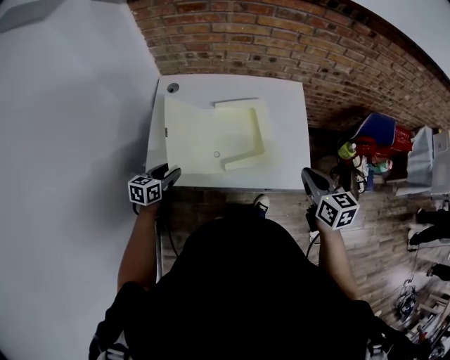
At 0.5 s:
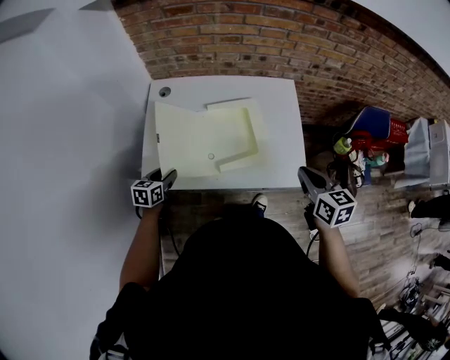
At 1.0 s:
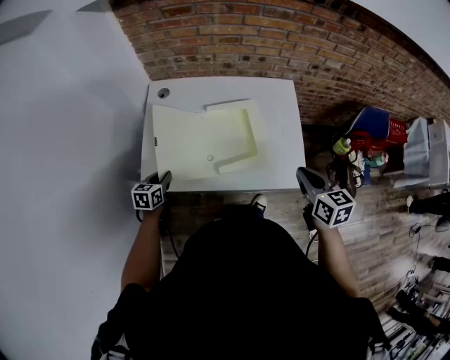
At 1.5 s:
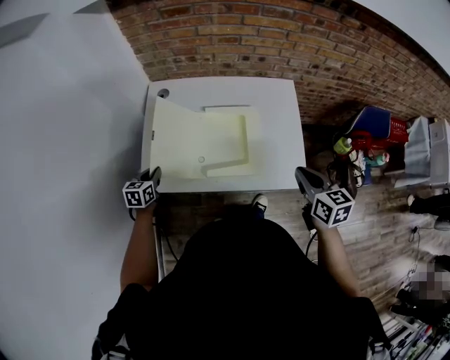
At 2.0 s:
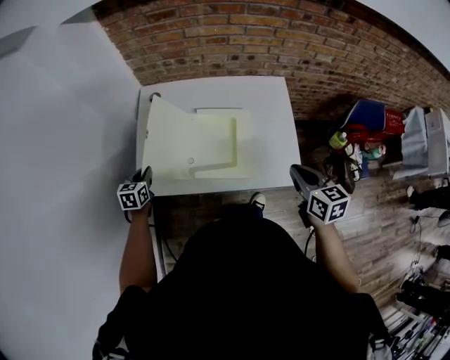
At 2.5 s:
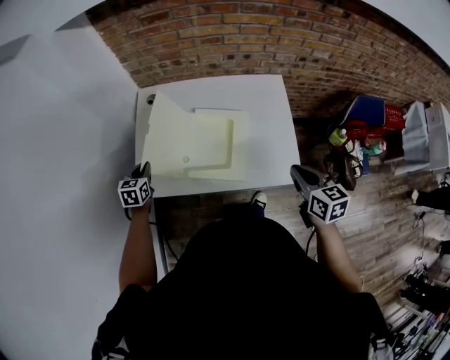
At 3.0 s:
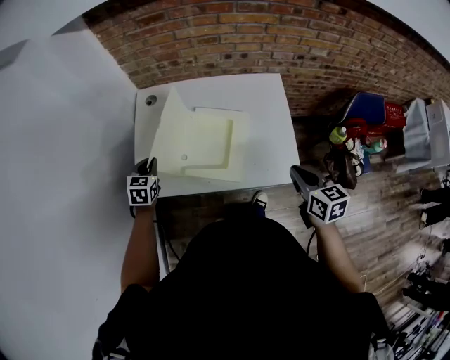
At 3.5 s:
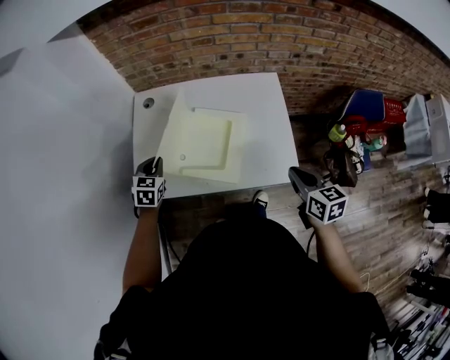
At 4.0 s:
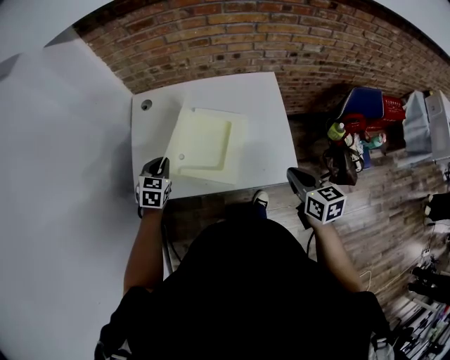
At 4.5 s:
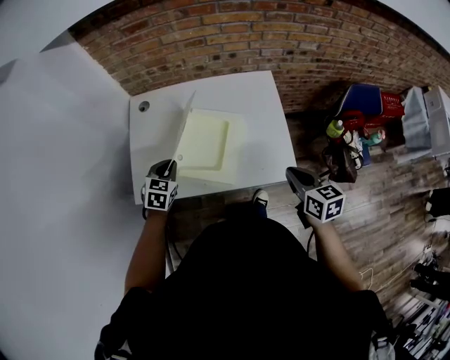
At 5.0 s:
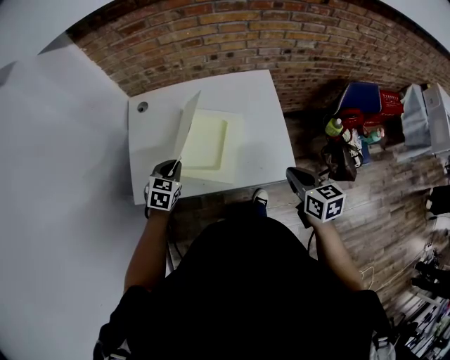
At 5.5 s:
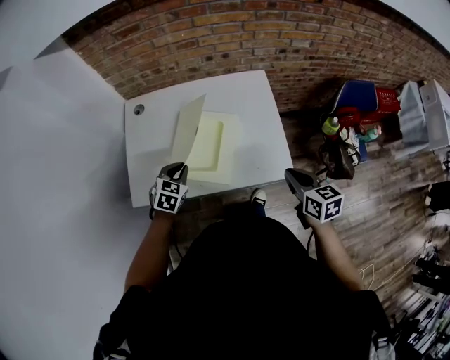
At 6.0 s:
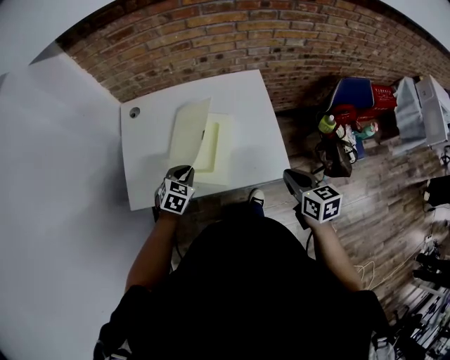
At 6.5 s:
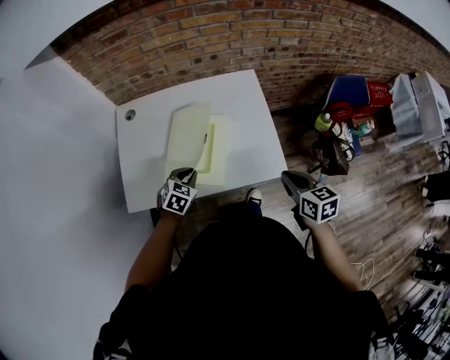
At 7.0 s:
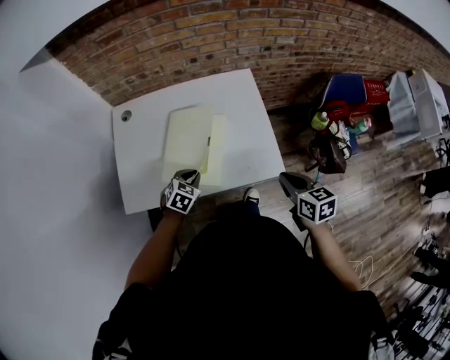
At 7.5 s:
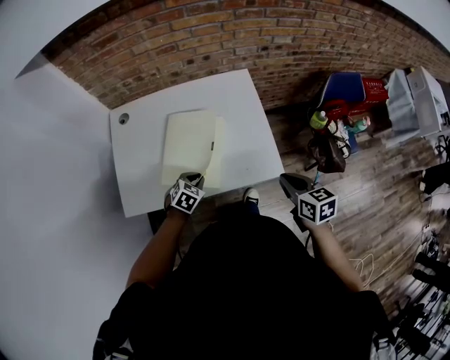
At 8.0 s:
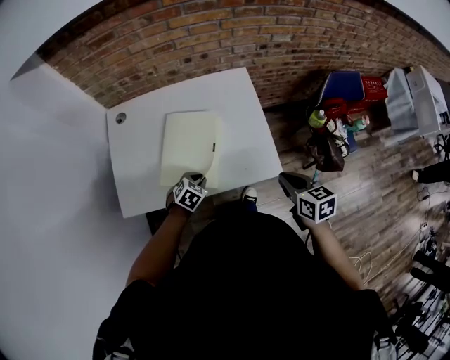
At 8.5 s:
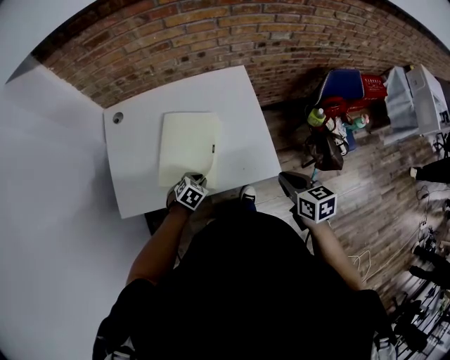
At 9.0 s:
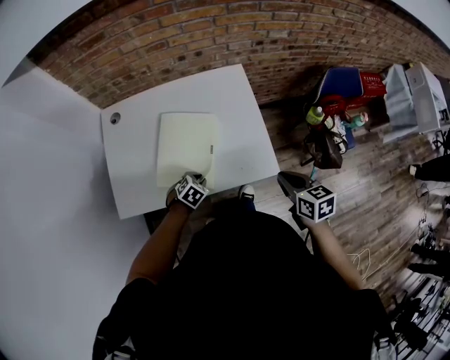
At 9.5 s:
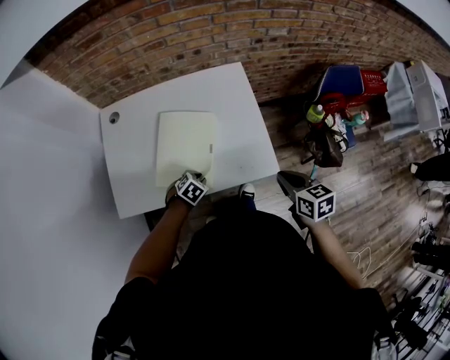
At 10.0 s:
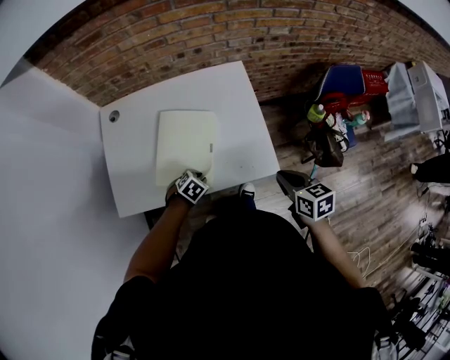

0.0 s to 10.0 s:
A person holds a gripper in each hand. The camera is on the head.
0.0 to 2.0 s: The left gripper moves to the left, roughly 5 cm, and closes.
2.0 to 4.0 s: The left gripper goes about 15 cm to the right and upward, and swivels roughly 30 degrees.
4.0 to 6.0 s: The left gripper is displaced to the right by approximately 15 cm.
6.0 to 8.0 s: The left gripper heads downward and to the right, covering about 10 cm.
8.0 to 10.0 s: The grippers stay close to where they were, moving slightly.

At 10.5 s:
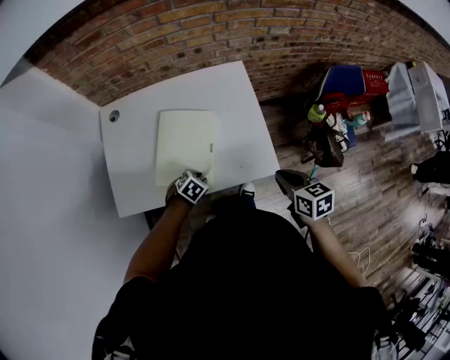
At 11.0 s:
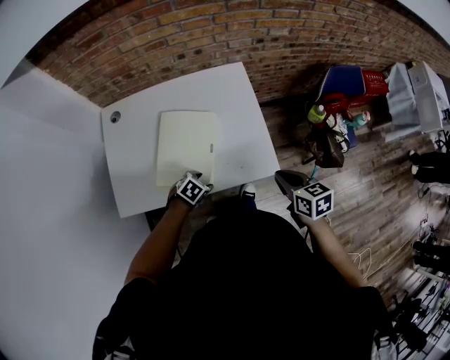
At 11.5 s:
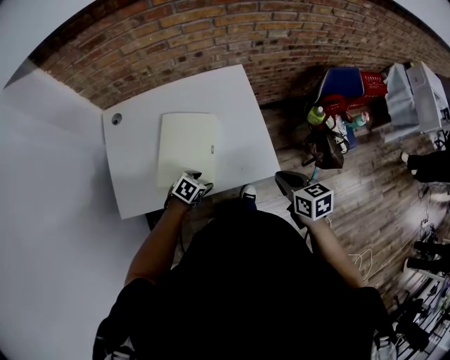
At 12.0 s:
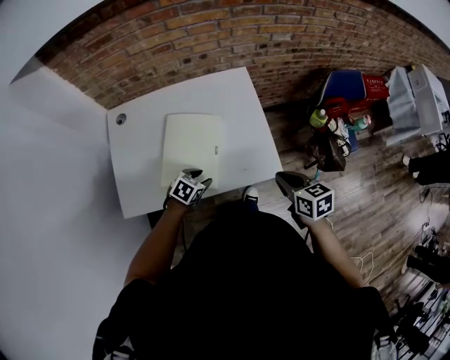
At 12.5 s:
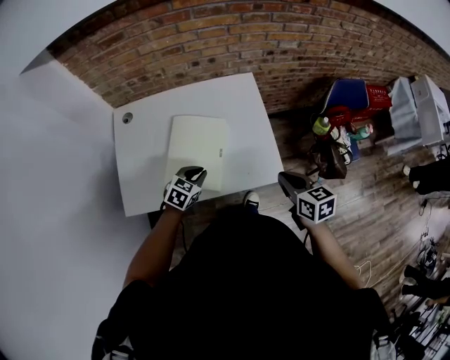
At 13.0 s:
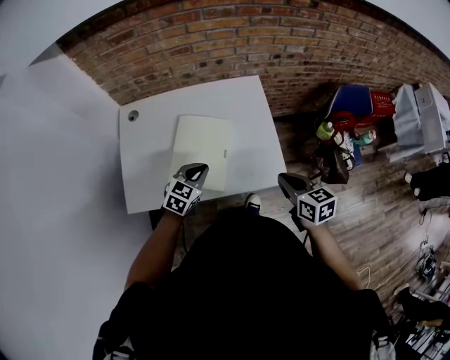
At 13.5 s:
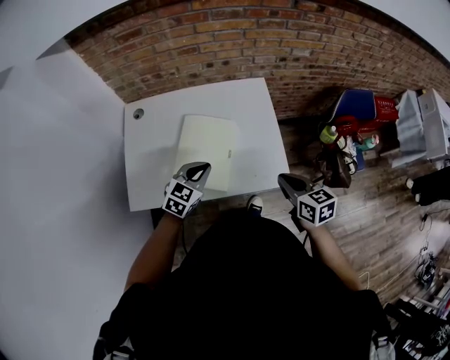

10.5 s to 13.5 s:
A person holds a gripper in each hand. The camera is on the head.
10.5 to 12.0 s: The left gripper opens its fingers.
12.0 to 13.5 s: The left gripper goes about 15 cm upward, turns by roughly 30 degrees, and closes up.

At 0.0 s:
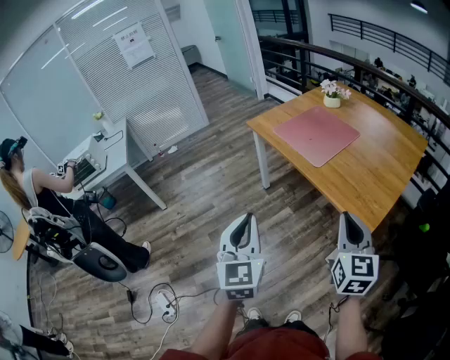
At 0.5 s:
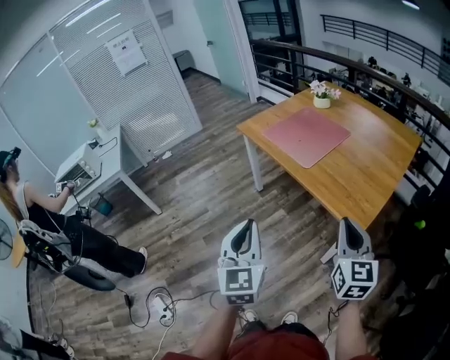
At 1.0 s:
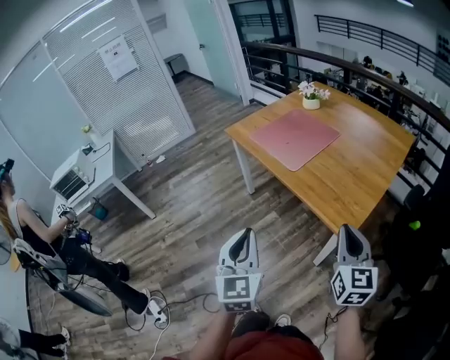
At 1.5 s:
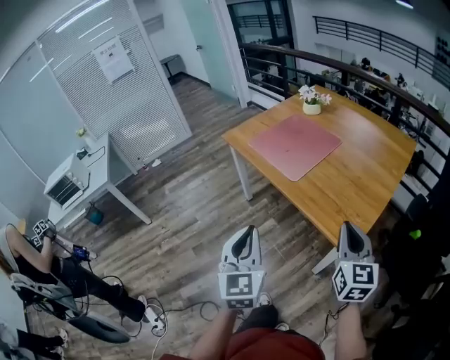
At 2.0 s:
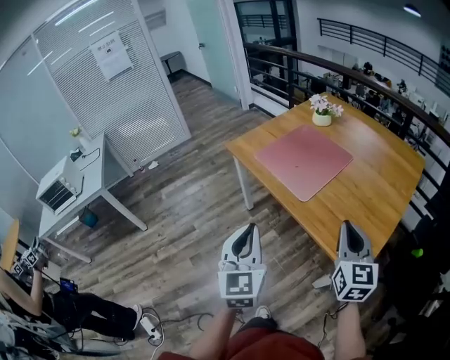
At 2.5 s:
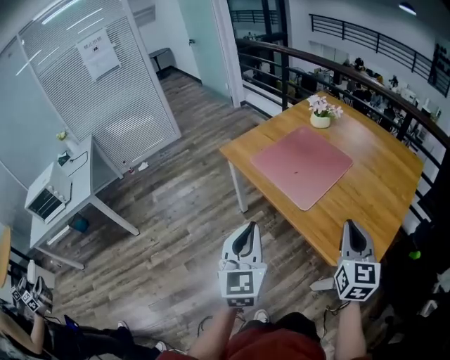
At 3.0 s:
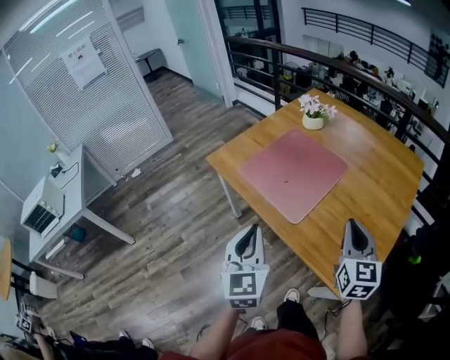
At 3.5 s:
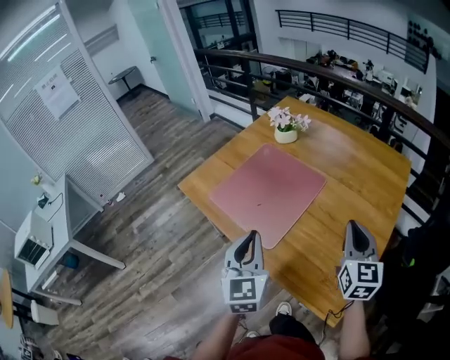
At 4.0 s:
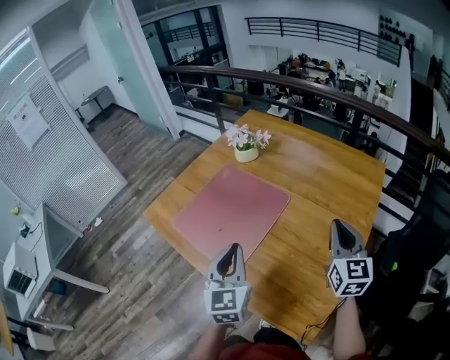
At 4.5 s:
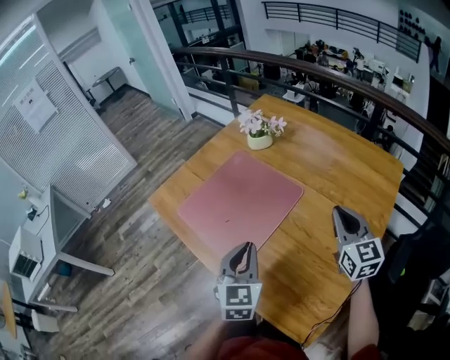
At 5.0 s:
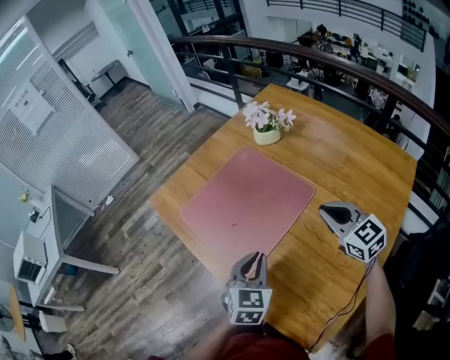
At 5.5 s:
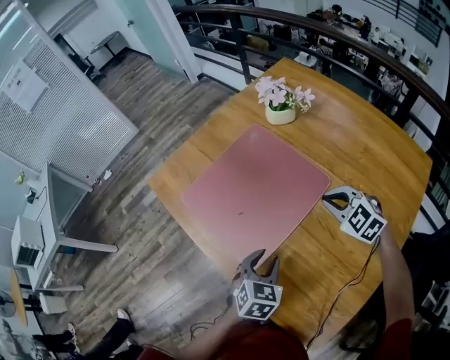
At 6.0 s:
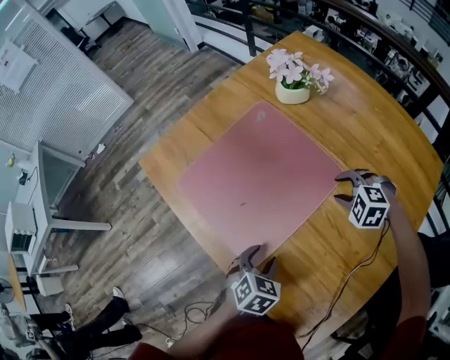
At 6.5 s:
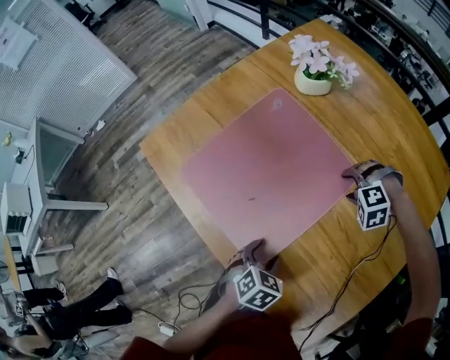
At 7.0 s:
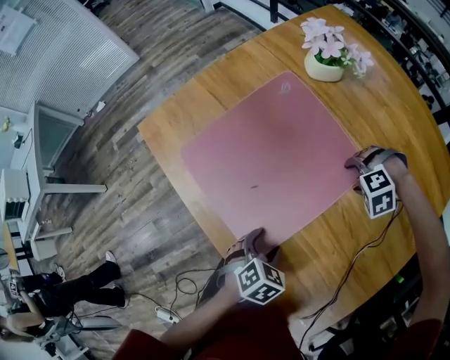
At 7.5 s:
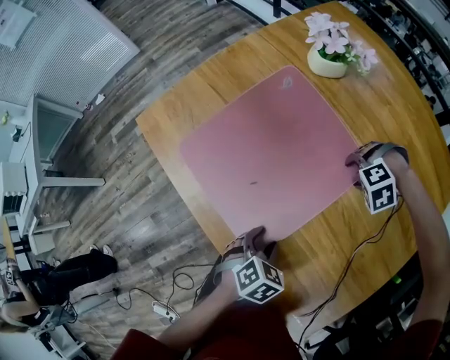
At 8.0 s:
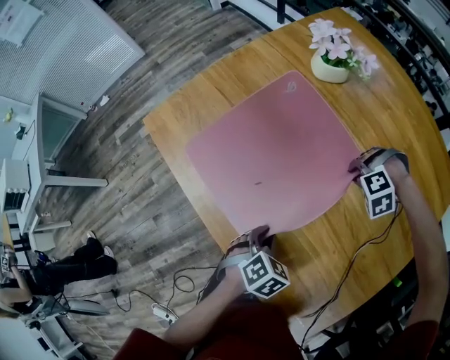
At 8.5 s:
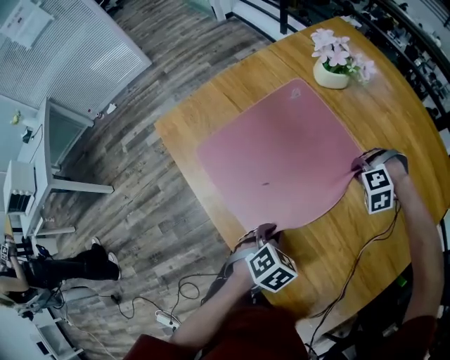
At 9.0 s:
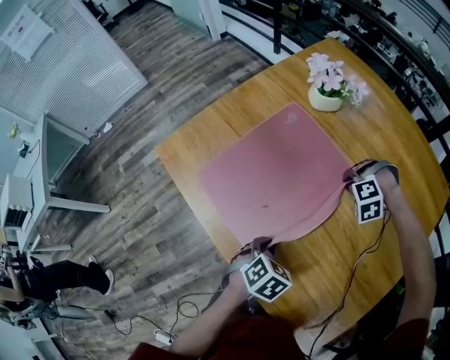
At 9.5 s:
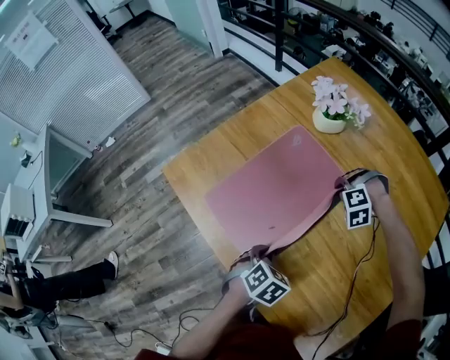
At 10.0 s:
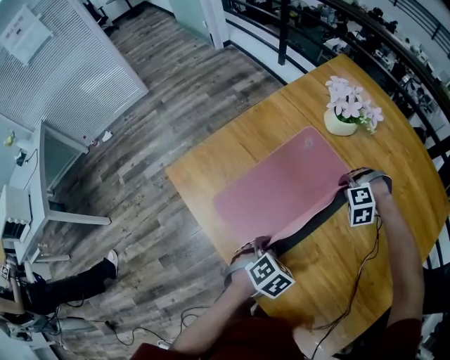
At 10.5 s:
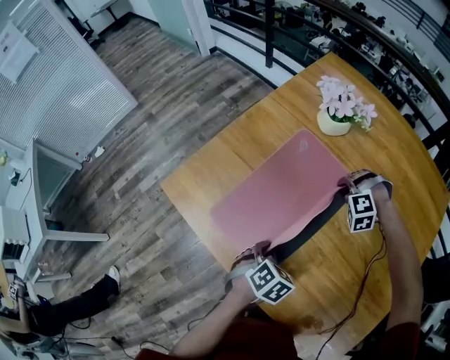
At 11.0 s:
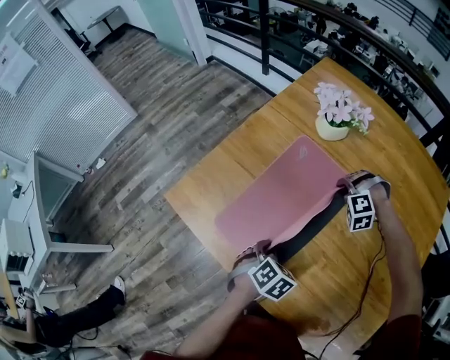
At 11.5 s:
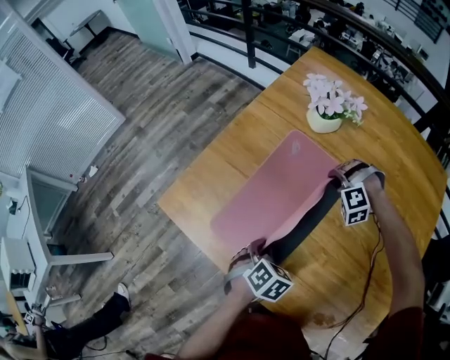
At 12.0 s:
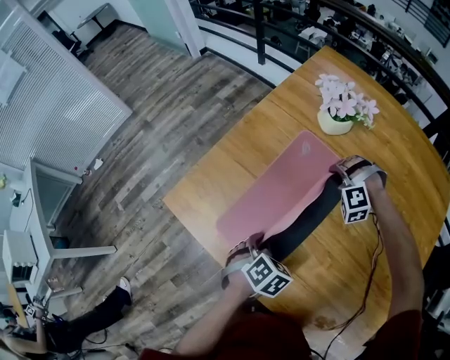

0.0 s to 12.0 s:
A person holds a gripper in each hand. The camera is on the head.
0.0 to 2.0 s: Both grippers travel together forward, about 20 cm.
2.0 to 4.0 s: Both grippers move forward and to the right, some 40 cm.
4.0 to 6.0 s: The right gripper moves downward and forward, some 40 cm, tilts its fingers some 60 degrees downward, and opens. Meanwhile the left gripper travels downward by roughly 25 cm, points its fingers some 50 degrees further downward, and opens its fingers.
6.0 to 8.0 s: The left gripper changes place by roughly 5 cm, and closes its fingers. The right gripper is displaced downward by about 5 cm, changes its angle by some 40 degrees, and opens and closes again.
8.0 to 10.0 s: The left gripper ends up about 15 cm from where it was. The right gripper ends up roughly 15 cm from where it was.
10.0 to 12.0 s: The left gripper ends up some 10 cm from where it was. Meanwhile the right gripper changes place by approximately 10 cm.

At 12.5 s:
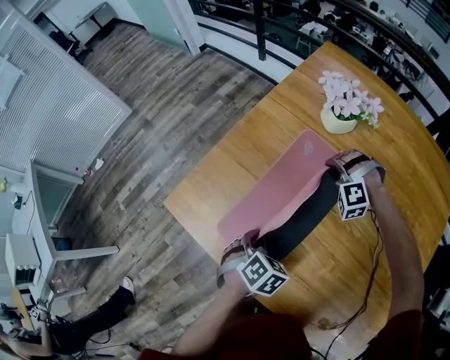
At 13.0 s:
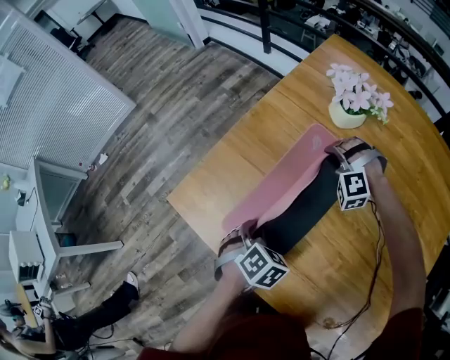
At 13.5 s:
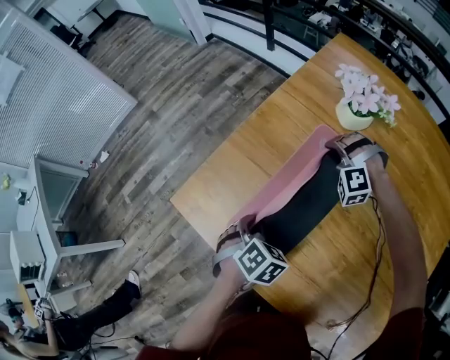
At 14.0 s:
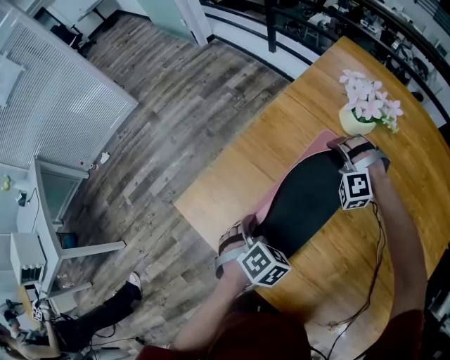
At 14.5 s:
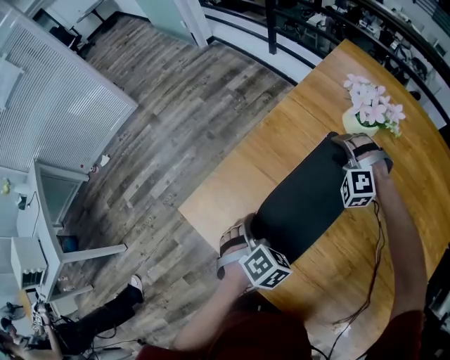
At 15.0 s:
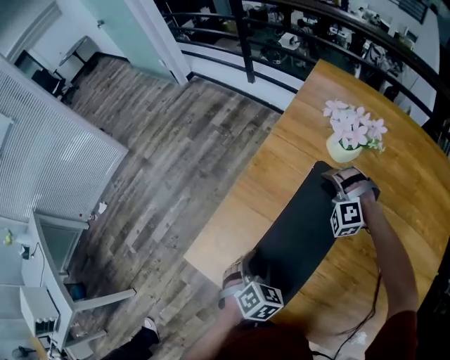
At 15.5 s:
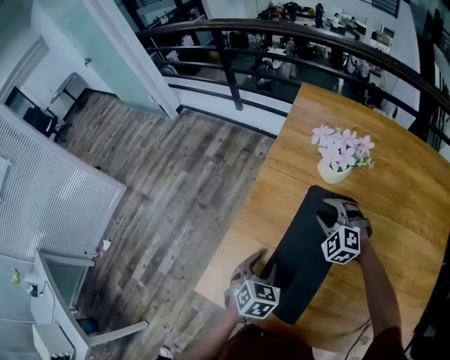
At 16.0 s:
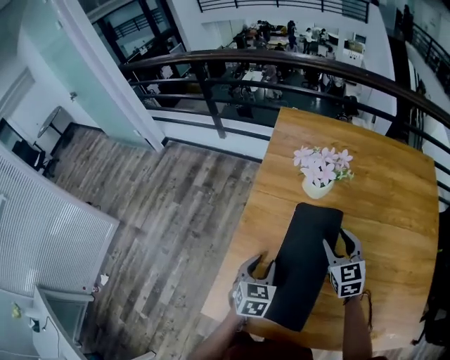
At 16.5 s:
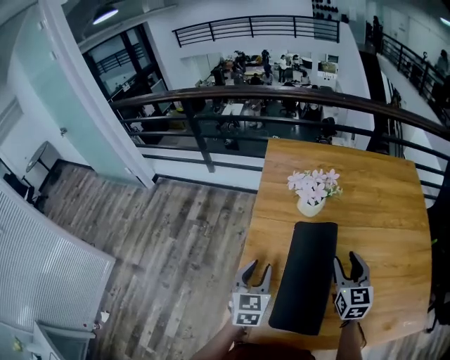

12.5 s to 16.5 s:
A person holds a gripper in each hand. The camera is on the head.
12.5 to 14.5 s: The two grippers go about 10 cm forward. The left gripper opens. The right gripper opens its fingers.
14.5 to 16.5 s: The grippers both shift upward by roughly 20 cm. The left gripper points its fingers some 40 degrees further upward. The right gripper rolls clockwise, seen from behind, by about 100 degrees.
